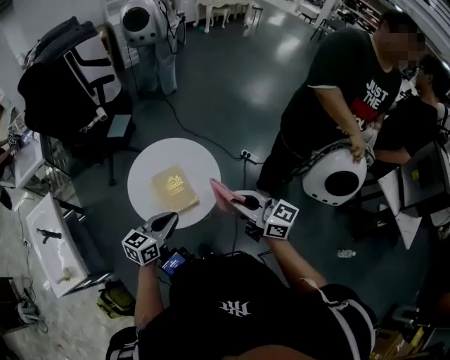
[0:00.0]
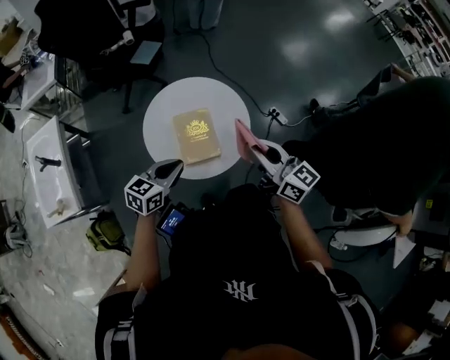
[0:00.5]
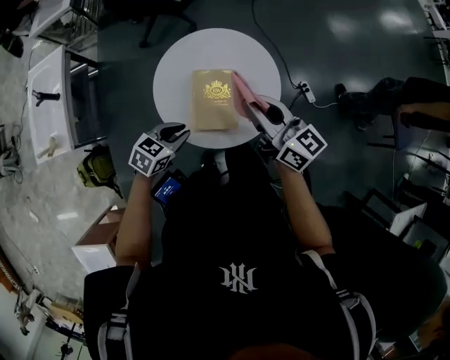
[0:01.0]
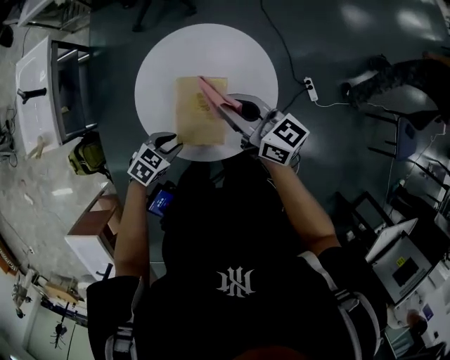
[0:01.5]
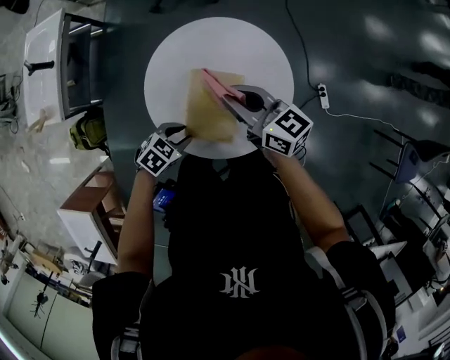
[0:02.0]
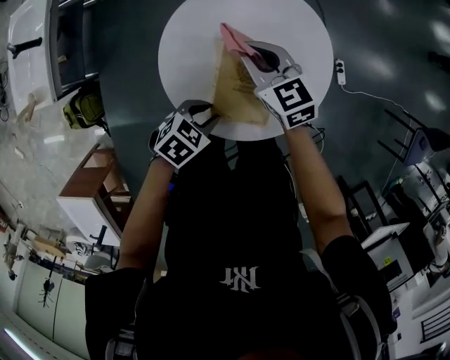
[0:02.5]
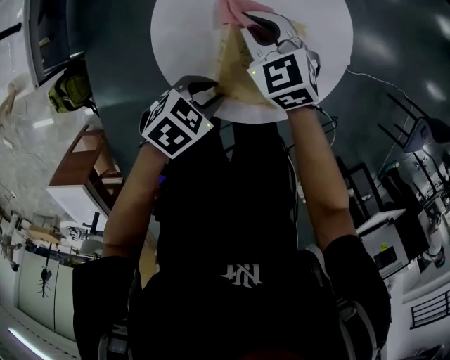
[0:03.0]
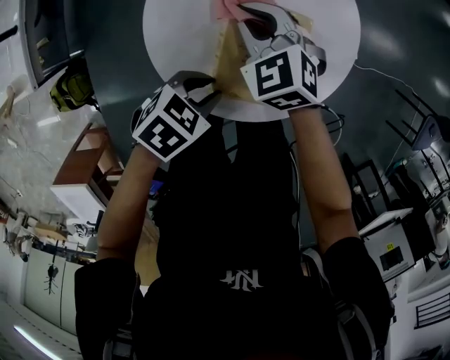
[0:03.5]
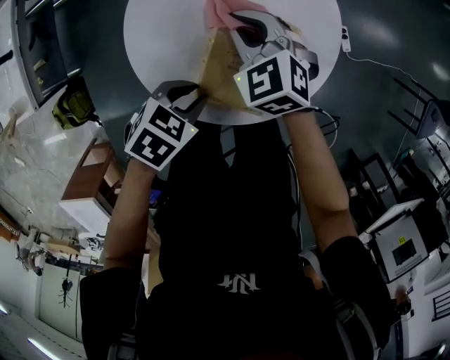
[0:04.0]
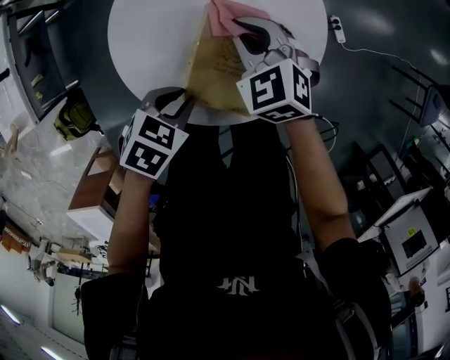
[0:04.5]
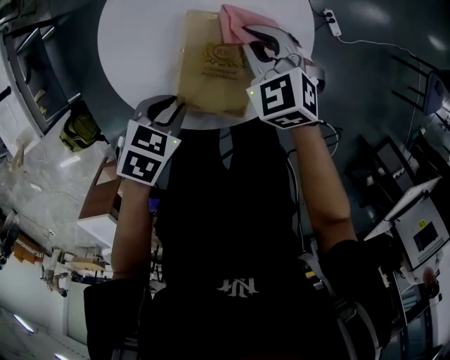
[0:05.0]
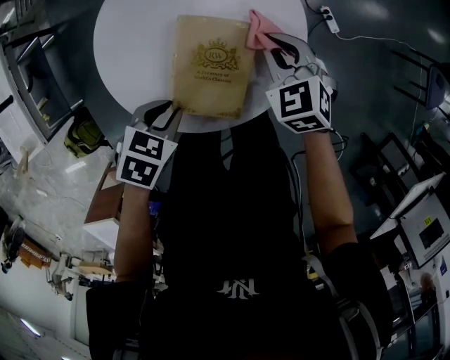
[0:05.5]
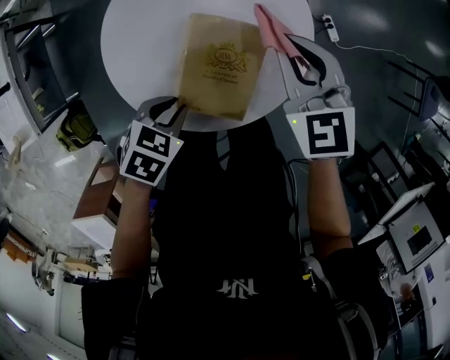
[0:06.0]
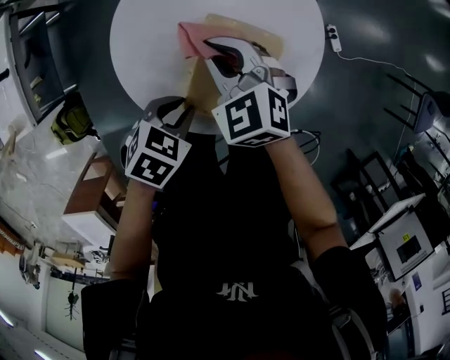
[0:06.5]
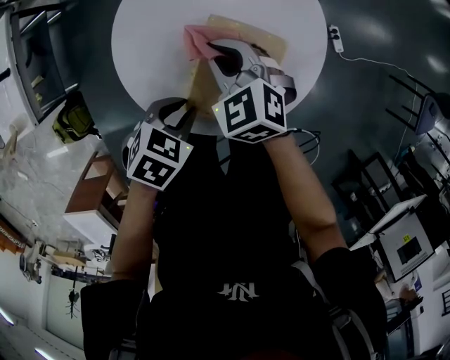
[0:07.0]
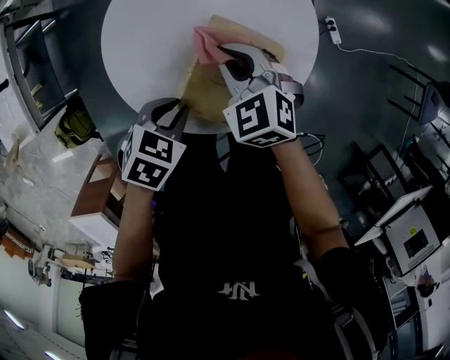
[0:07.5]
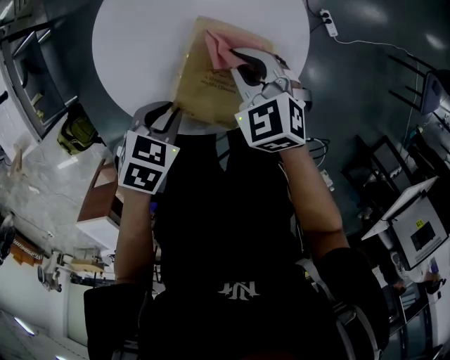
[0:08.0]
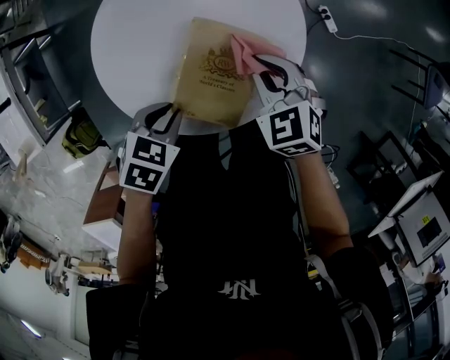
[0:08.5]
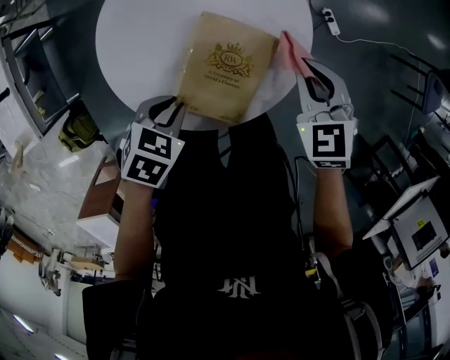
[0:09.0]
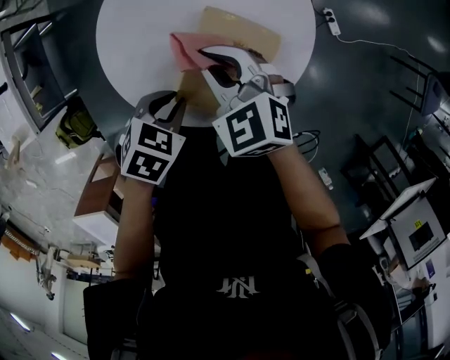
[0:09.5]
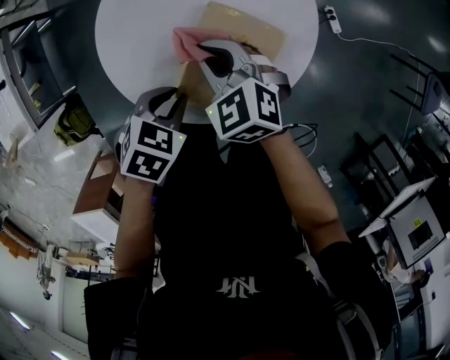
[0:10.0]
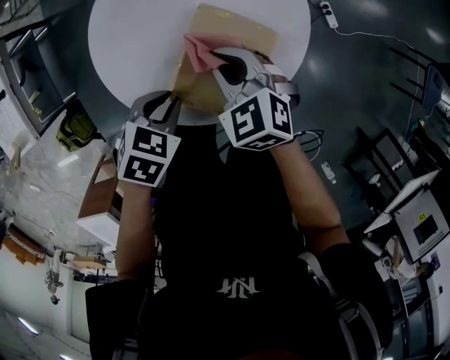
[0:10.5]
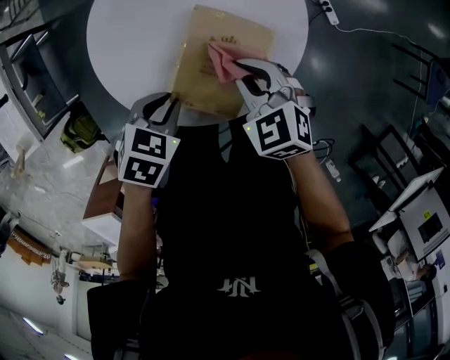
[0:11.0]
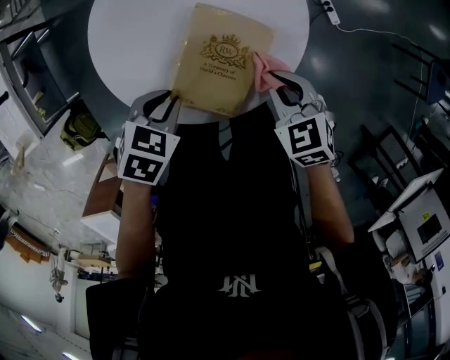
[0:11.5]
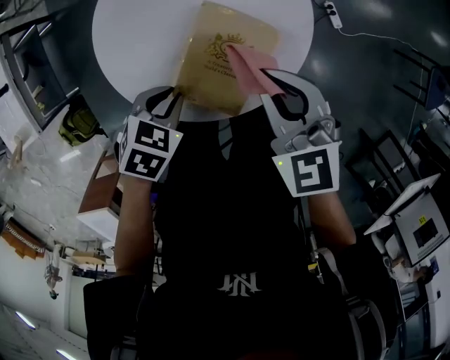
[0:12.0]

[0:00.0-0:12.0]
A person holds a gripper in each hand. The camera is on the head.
0:00.0 to 0:02.0: The left gripper is displaced downward by approximately 30 cm, points its fingers approximately 40 degrees further downward, and opens its fingers. The right gripper ends up roughly 40 cm from where it was, and changes its angle by roughly 40 degrees.
0:02.0 to 0:04.0: The right gripper goes roughly 15 cm downward, and tips its fingers downward by approximately 30 degrees.
0:04.0 to 0:06.0: The right gripper moves to the right and upward, some 15 cm.
0:06.0 to 0:08.0: The right gripper heads downward, covering some 10 cm, and moves approximately 15 cm to the left and comes back.
0:08.0 to 0:10.0: The right gripper is displaced to the left by approximately 5 cm.
0:10.0 to 0:12.0: The right gripper heads to the right and upward, covering approximately 15 cm.

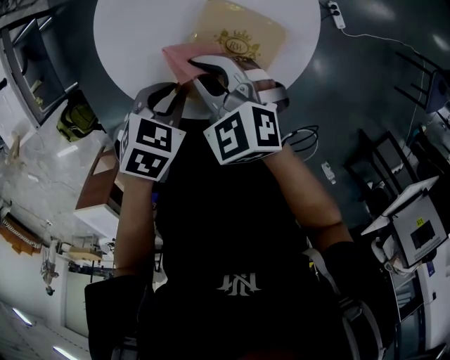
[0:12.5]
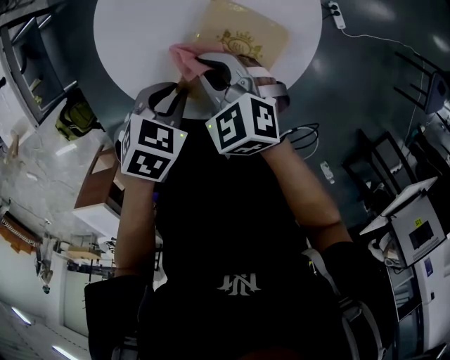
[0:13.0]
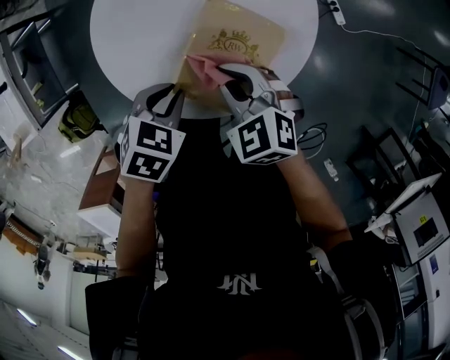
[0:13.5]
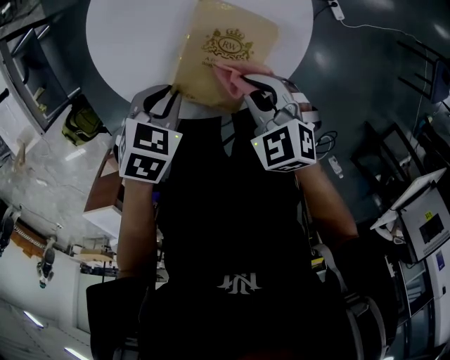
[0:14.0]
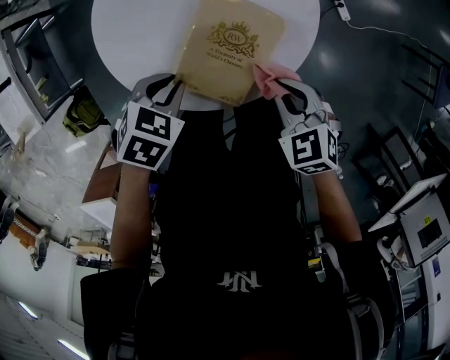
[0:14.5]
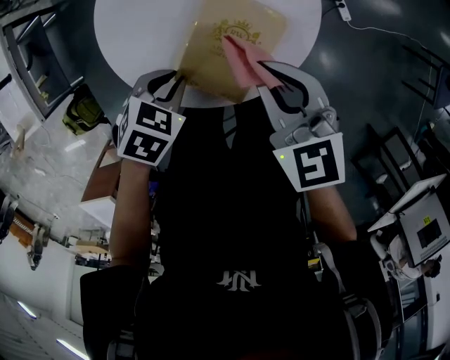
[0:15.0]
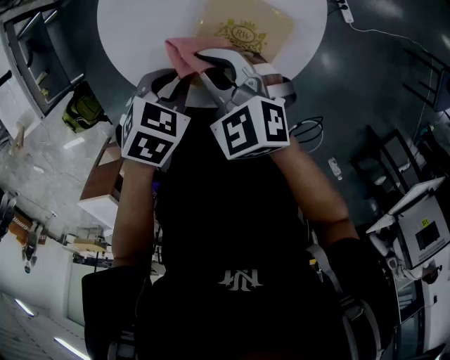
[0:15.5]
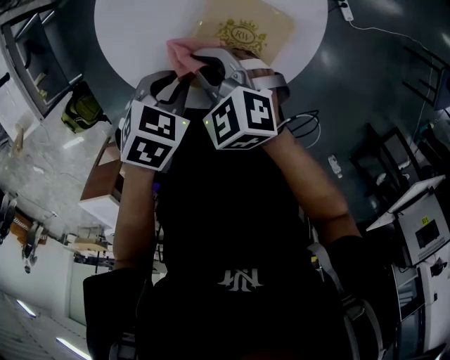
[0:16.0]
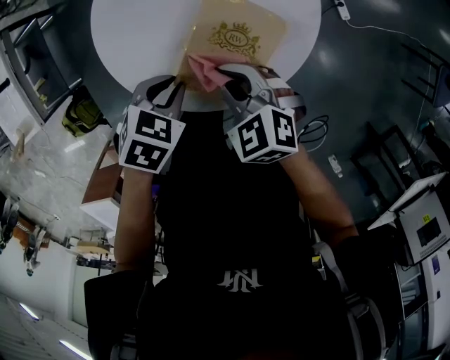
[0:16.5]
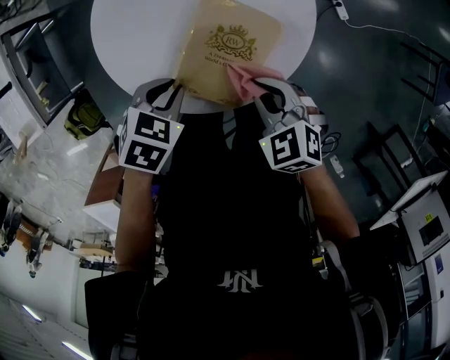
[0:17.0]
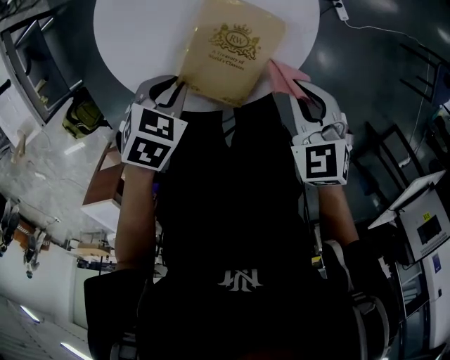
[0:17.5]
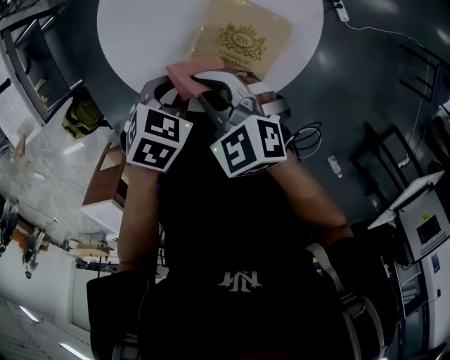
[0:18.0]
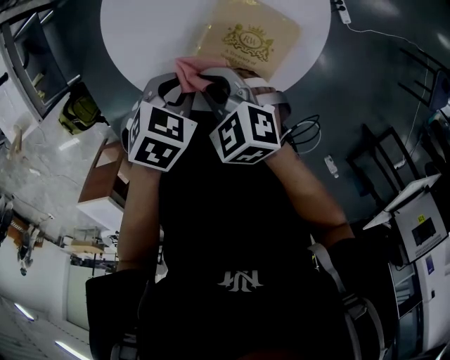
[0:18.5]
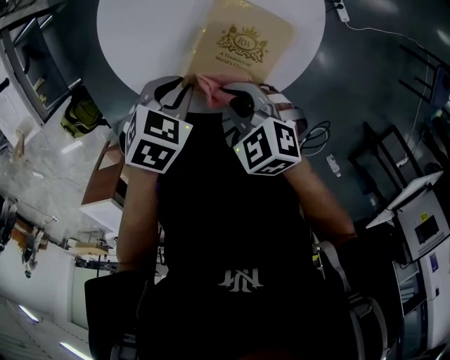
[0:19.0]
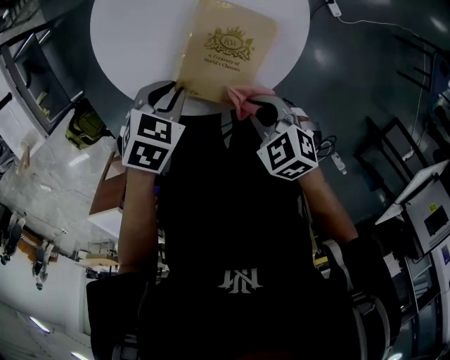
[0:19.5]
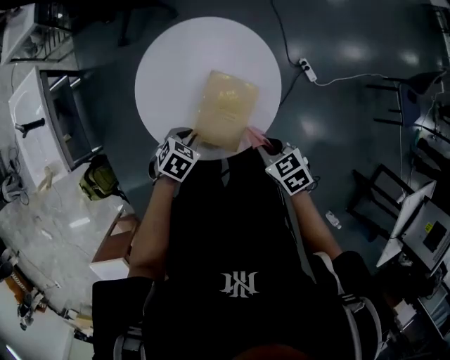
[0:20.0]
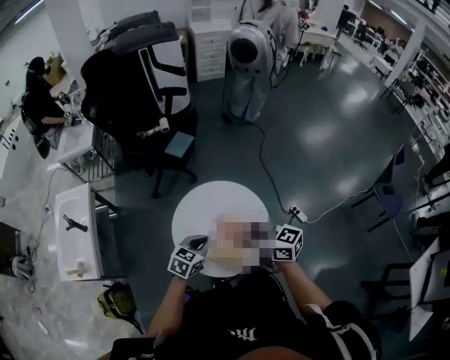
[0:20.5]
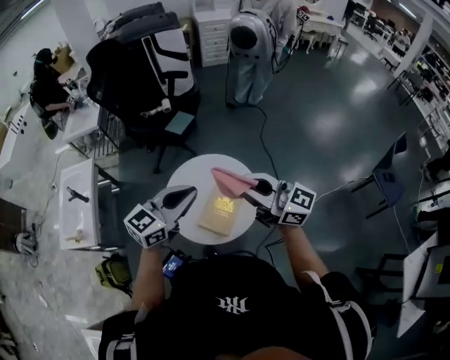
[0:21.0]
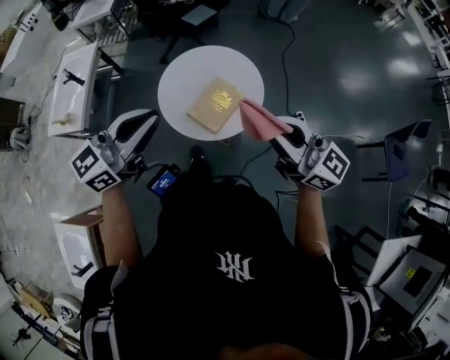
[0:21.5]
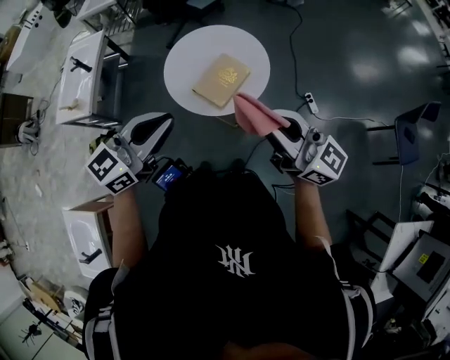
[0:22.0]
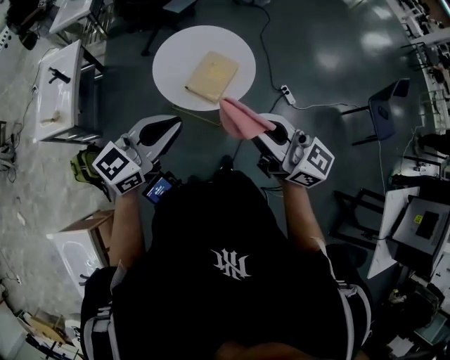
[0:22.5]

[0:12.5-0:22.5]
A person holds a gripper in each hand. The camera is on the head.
0:12.5 to 0:14.5: The right gripper travels to the right by approximately 20 cm.
0:14.5 to 0:16.5: The right gripper moves to the left, approximately 10 cm.
0:18.5 to 0:20.5: The left gripper is displaced upward by some 25 cm, and swivels about 30 degrees, while the right gripper travels upward by about 35 cm, and tilts its fingers about 50 degrees upward.
0:20.5 to 0:22.5: The left gripper heads backward and upward, covering about 40 cm, and points its fingers about 30 degrees further upward. Meanwhile the right gripper shifts some 35 cm backward, and turns by approximately 20 degrees.

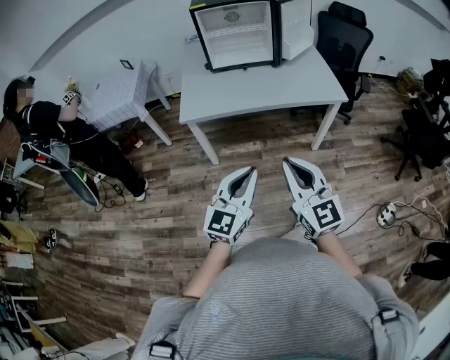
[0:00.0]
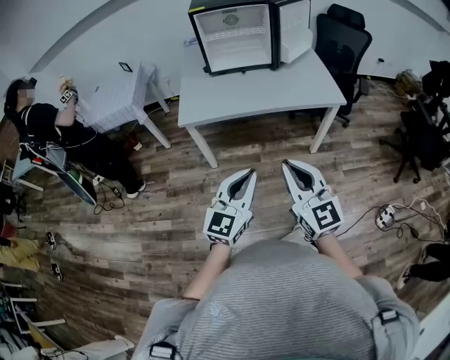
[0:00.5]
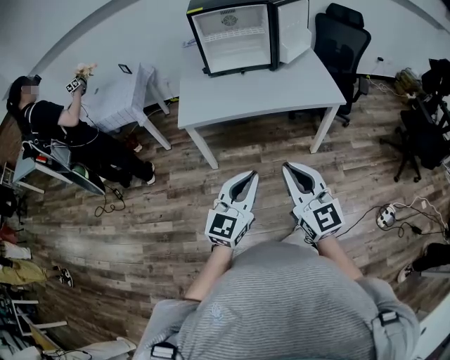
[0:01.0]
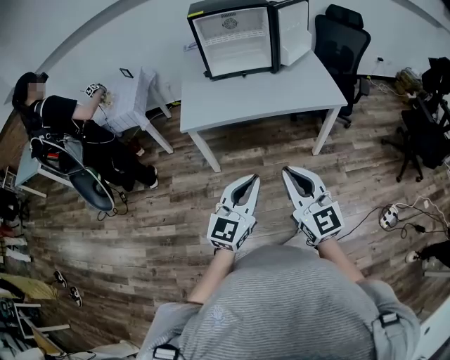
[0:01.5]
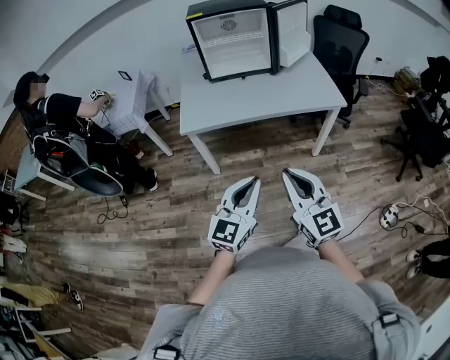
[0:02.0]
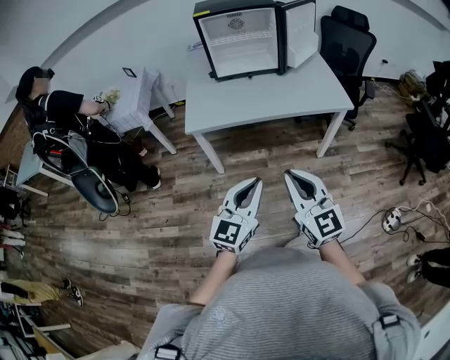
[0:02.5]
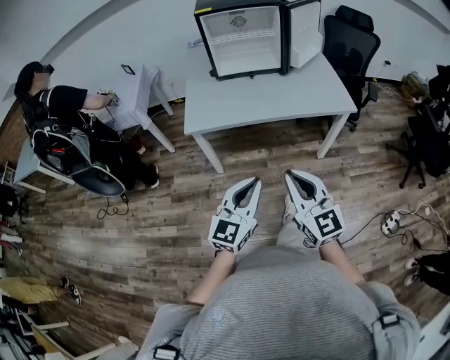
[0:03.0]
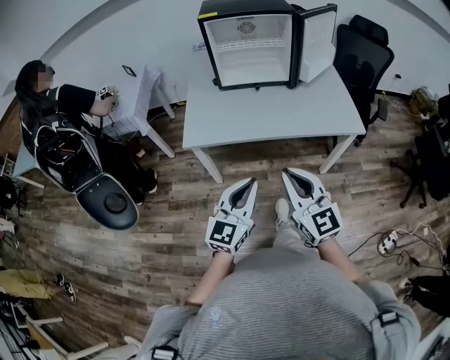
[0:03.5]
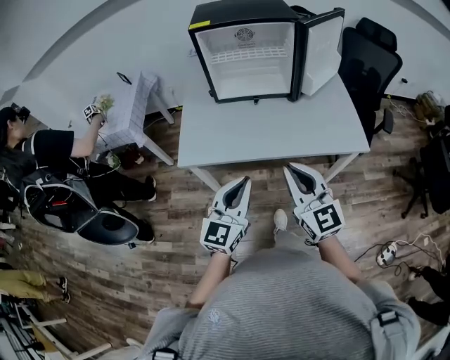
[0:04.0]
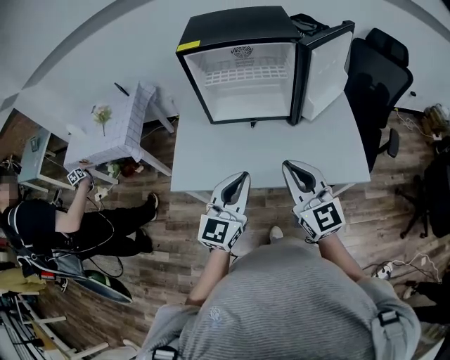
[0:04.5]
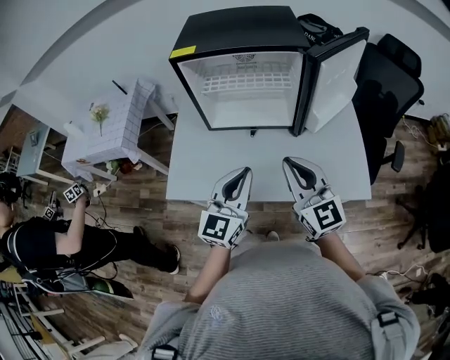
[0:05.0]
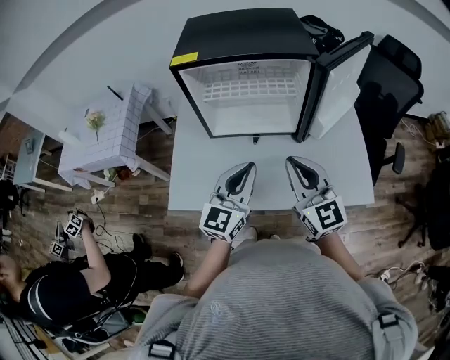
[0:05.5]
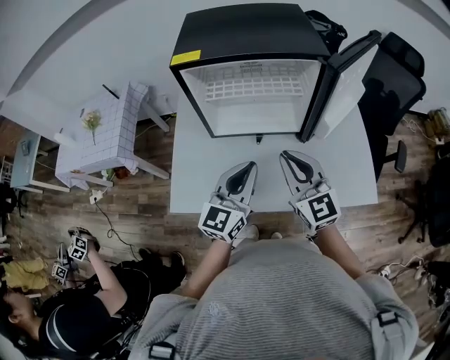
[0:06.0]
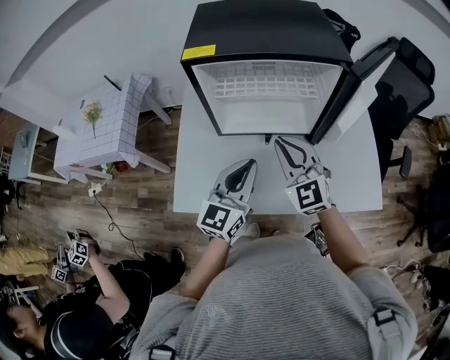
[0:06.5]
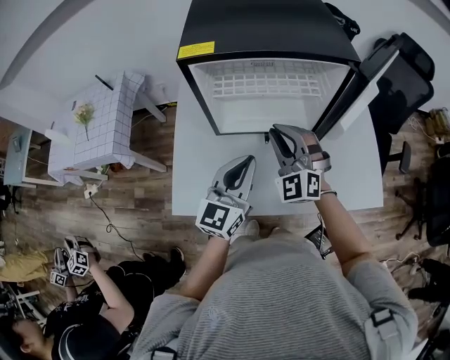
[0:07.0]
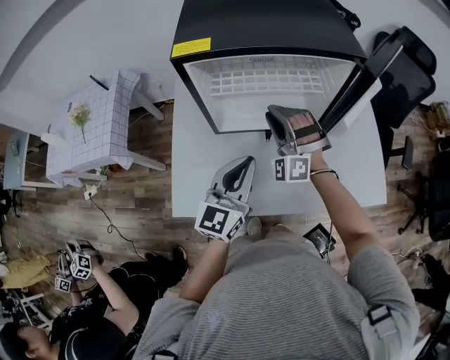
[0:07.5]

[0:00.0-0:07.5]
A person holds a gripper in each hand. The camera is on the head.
0:00.0 to 0:02.0: Both grippers stay about where they are.
0:02.0 to 0:04.0: The two grippers go roughly 25 cm forward.
0:04.0 to 0:05.5: The two grippers go some 25 cm forward.
0:05.5 to 0:07.5: The right gripper moves forward, to the left and downward, roughly 25 cm, and twists some 70 degrees counterclockwise, seen from behind, while the left gripper heads forward and to the left, covering some 10 cm.
